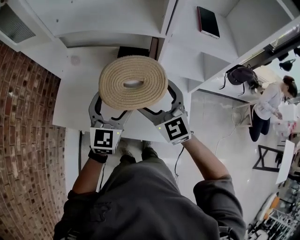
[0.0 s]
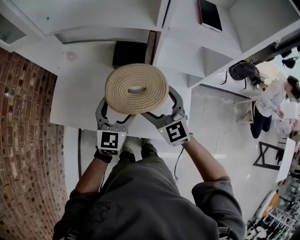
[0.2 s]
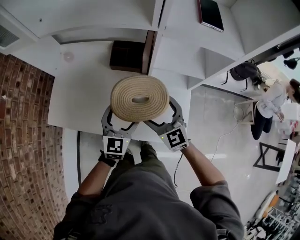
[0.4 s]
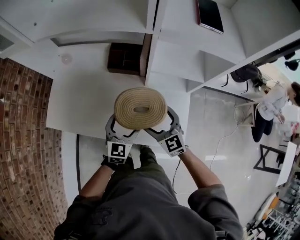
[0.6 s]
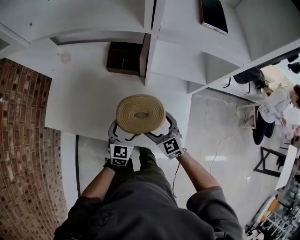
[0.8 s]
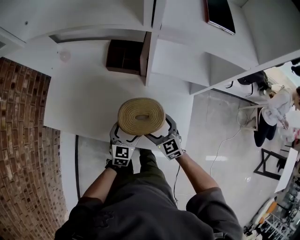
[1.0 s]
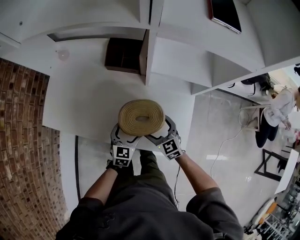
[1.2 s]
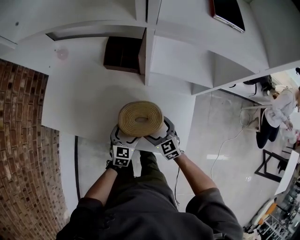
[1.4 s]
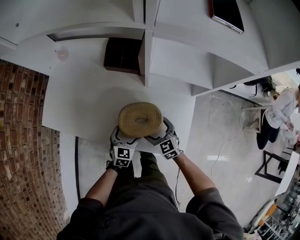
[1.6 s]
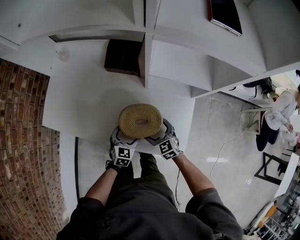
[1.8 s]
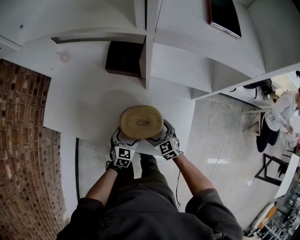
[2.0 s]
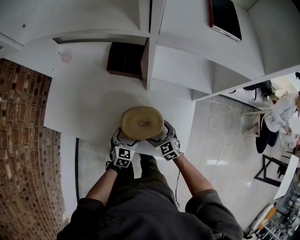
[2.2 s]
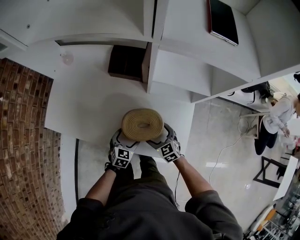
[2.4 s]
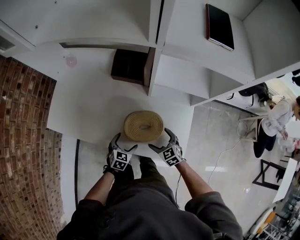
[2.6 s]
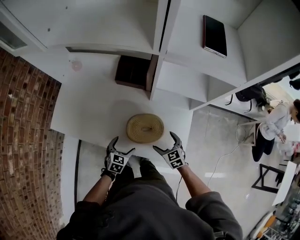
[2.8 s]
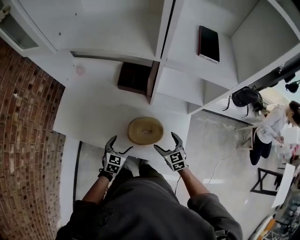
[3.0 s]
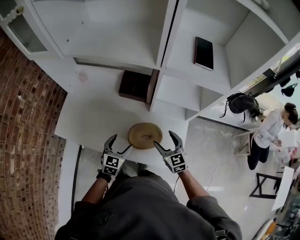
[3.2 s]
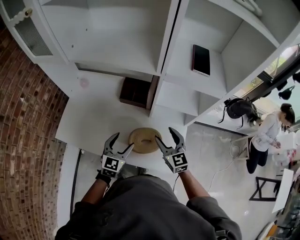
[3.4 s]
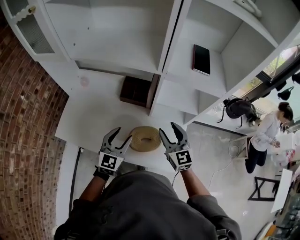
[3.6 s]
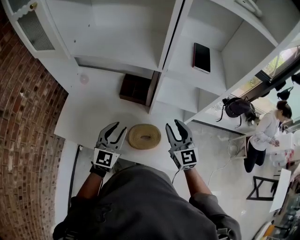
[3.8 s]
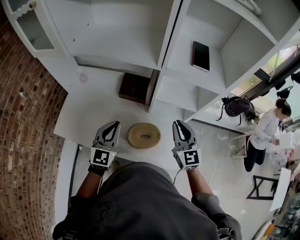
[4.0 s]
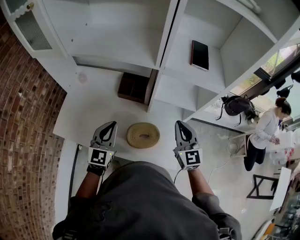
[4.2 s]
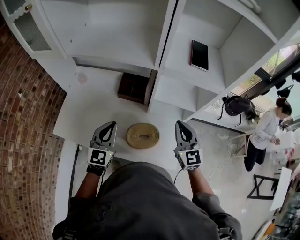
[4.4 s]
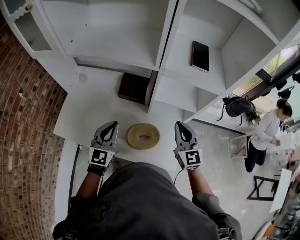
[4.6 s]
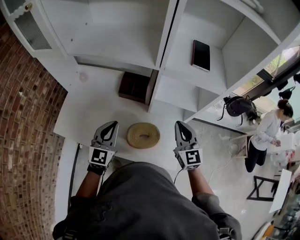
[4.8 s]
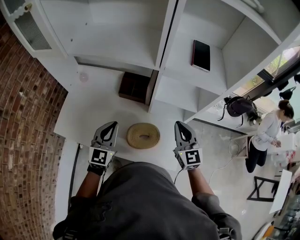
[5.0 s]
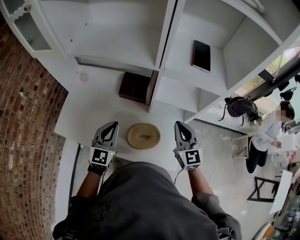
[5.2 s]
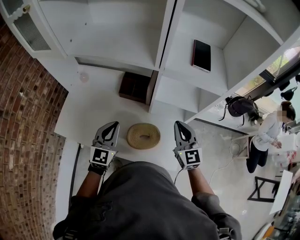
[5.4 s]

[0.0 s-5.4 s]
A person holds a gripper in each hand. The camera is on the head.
0.0 to 1.4 s: The grippers both shift downward by approximately 35 cm. The right gripper changes its angle by some 30 degrees, while the left gripper swivels approximately 30 degrees.
1.4 to 2.8 s: The left gripper goes approximately 5 cm to the left. Meanwhile the right gripper ends up about 5 cm from where it was.
2.8 to 4.0 s: Both grippers travel together upward, roughly 30 cm. The left gripper angles its fingers upward, by some 40 degrees, and closes its fingers. The right gripper tilts its fingers some 40 degrees upward, and closes.
4.0 to 5.4 s: The grippers make only small movements.

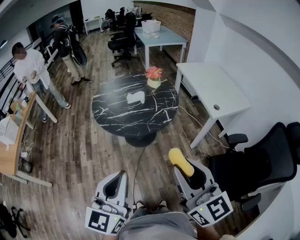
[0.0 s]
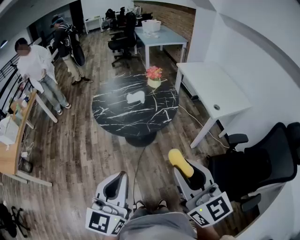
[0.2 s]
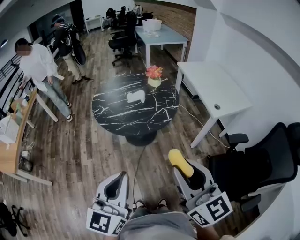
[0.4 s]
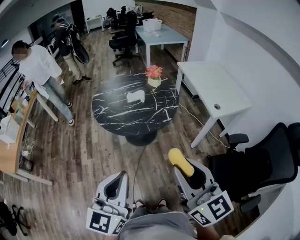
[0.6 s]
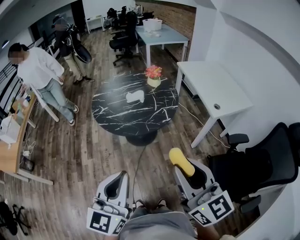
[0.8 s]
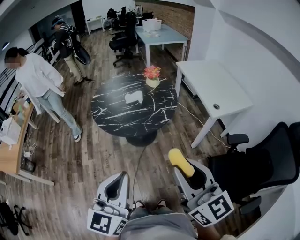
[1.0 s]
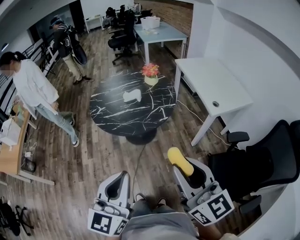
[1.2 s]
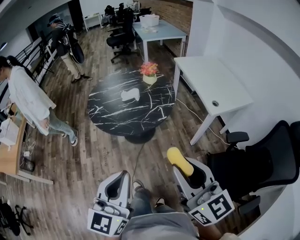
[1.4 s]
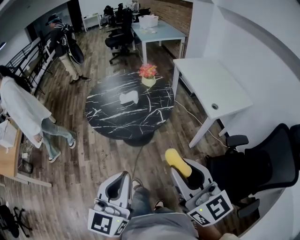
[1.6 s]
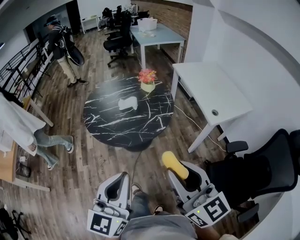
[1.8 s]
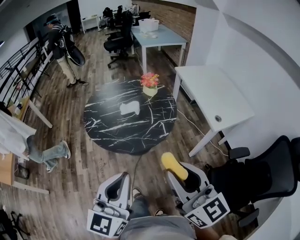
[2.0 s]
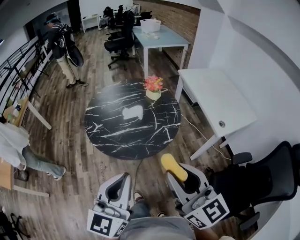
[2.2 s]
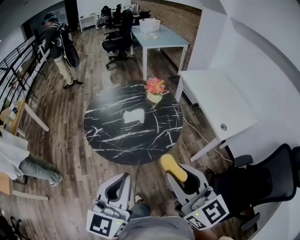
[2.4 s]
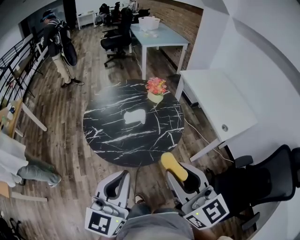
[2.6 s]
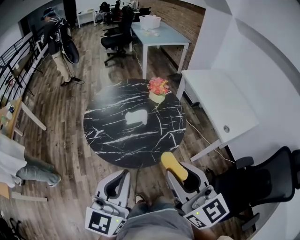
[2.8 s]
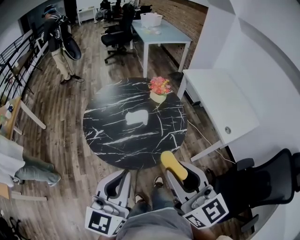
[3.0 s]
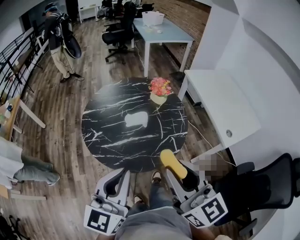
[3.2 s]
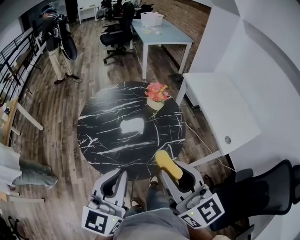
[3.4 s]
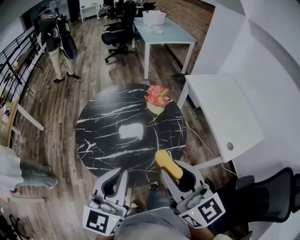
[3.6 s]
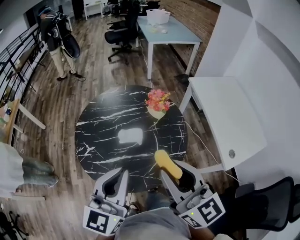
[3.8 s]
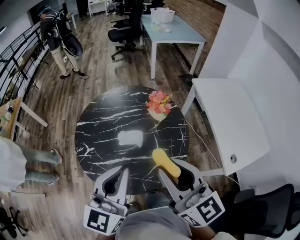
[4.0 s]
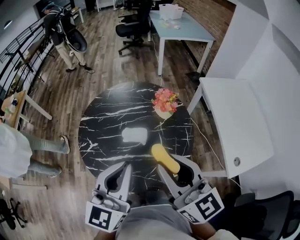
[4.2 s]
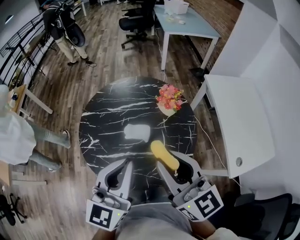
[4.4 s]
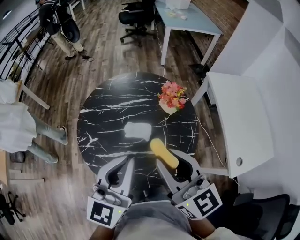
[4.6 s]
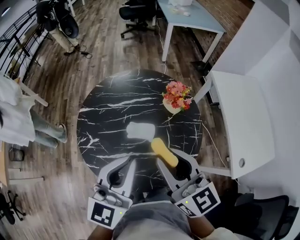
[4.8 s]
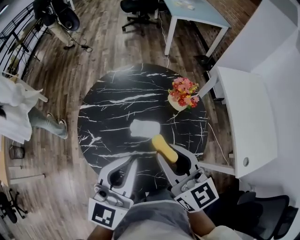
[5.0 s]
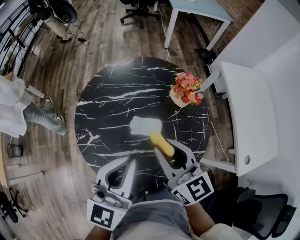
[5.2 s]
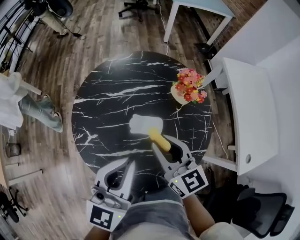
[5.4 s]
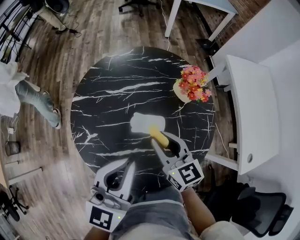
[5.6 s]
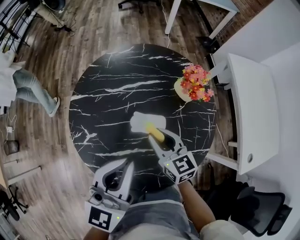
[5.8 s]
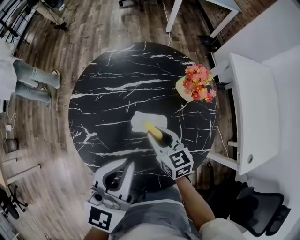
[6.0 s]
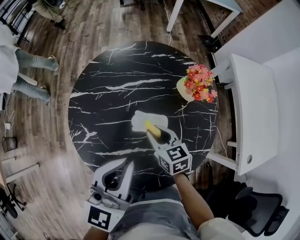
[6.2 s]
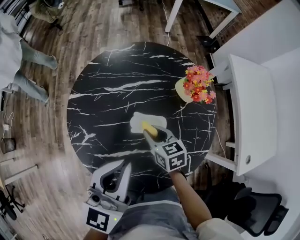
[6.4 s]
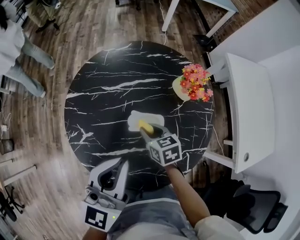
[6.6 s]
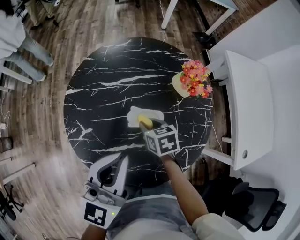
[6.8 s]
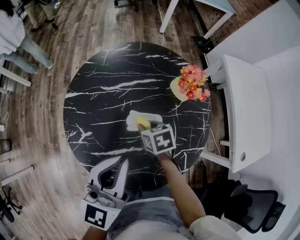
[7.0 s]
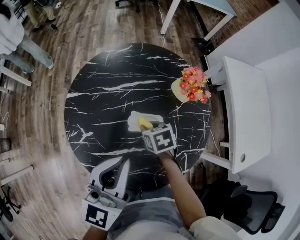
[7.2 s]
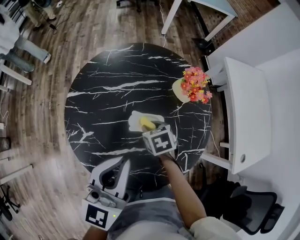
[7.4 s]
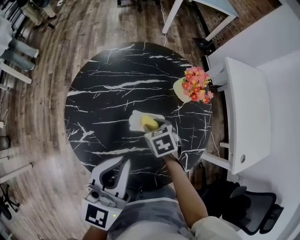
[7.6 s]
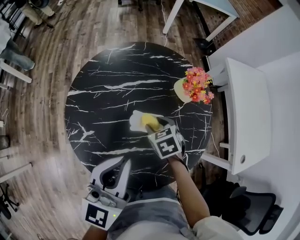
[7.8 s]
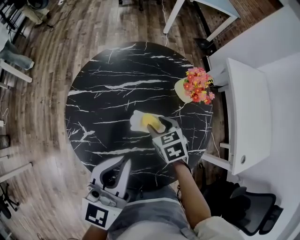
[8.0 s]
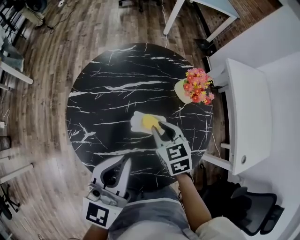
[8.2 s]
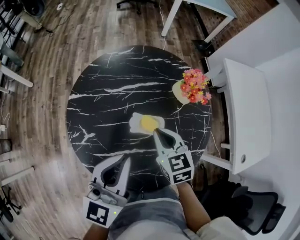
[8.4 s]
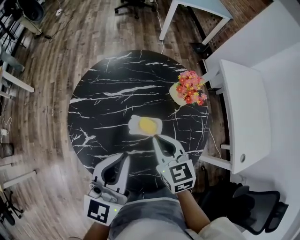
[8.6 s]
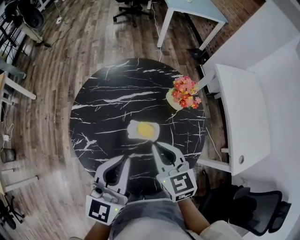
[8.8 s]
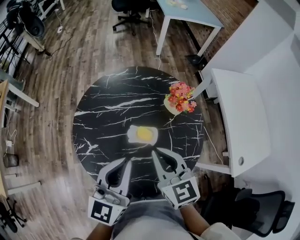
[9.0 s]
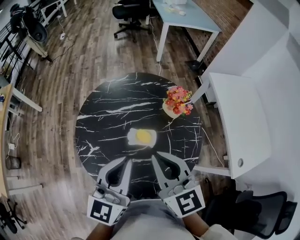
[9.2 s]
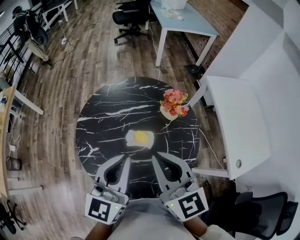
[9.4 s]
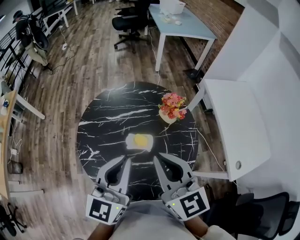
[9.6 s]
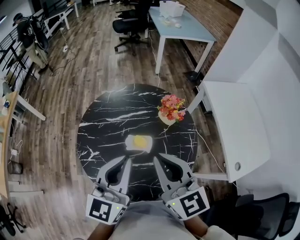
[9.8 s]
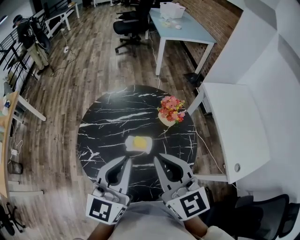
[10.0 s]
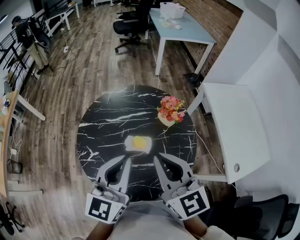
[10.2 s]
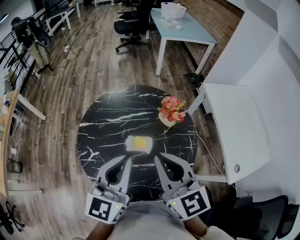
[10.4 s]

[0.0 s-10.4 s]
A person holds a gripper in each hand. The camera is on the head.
0.0 to 1.4 s: Both grippers move to the right, roughly 5 cm.
1.4 to 3.0 s: The right gripper moves forward and to the left, some 30 cm. Meanwhile the left gripper shifts approximately 25 cm forward.
3.0 to 4.4 s: The left gripper goes about 25 cm forward and to the right. Meanwhile the right gripper goes approximately 25 cm forward.
4.4 to 6.0 s: The left gripper moves downward, forward and to the left, approximately 15 cm. The right gripper shifts about 35 cm downward and forward, and points its fingers approximately 30 degrees further downward.
6.0 to 7.4 s: The right gripper travels downward by about 5 cm, and points its fingers roughly 30 degrees further downward.
7.4 to 9.0 s: The right gripper goes roughly 25 cm upward, tips its fingers upward by about 40 degrees, and closes.
9.0 to 10.4 s: The right gripper moves upward, about 15 cm. The left gripper shifts approximately 5 cm upward.

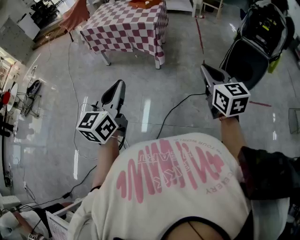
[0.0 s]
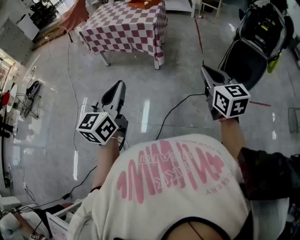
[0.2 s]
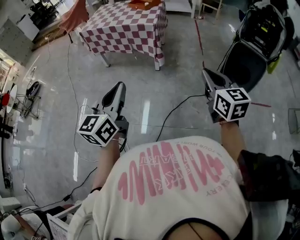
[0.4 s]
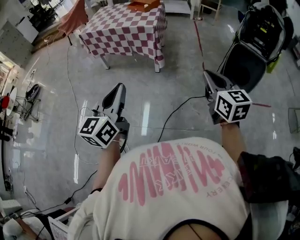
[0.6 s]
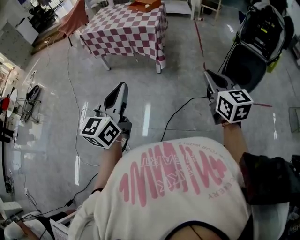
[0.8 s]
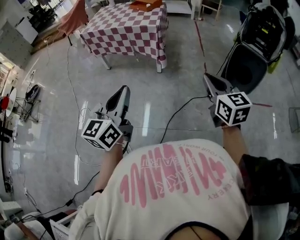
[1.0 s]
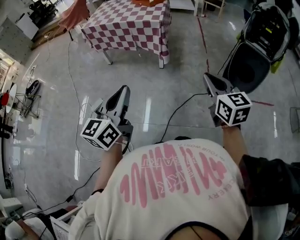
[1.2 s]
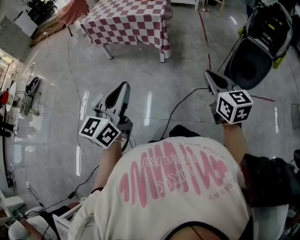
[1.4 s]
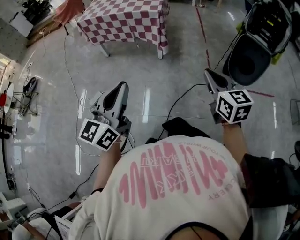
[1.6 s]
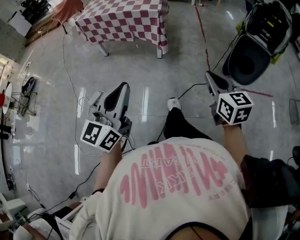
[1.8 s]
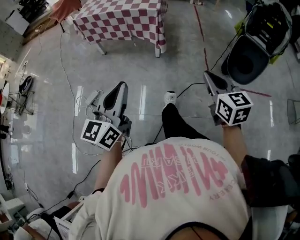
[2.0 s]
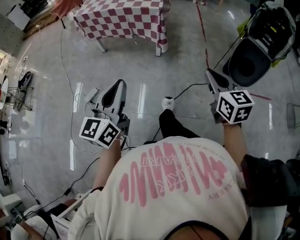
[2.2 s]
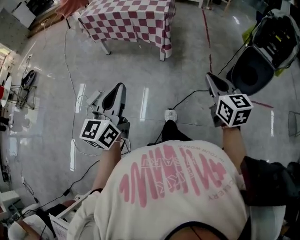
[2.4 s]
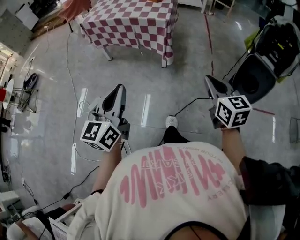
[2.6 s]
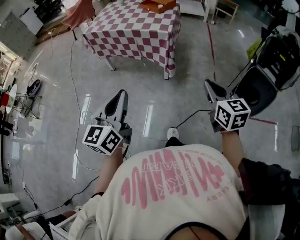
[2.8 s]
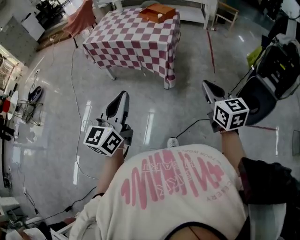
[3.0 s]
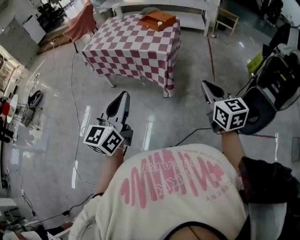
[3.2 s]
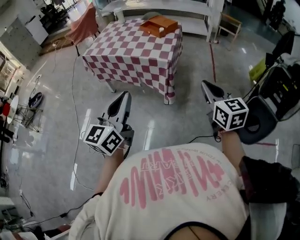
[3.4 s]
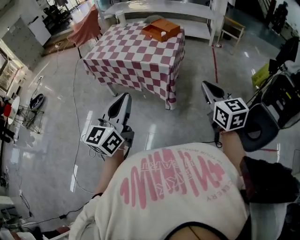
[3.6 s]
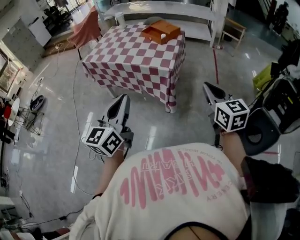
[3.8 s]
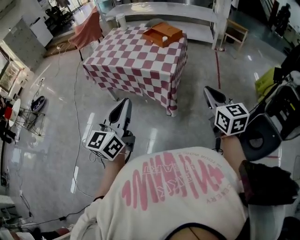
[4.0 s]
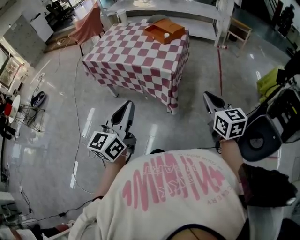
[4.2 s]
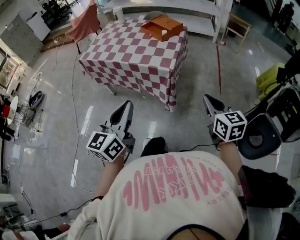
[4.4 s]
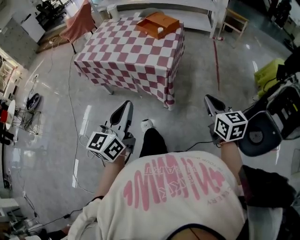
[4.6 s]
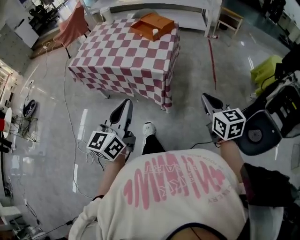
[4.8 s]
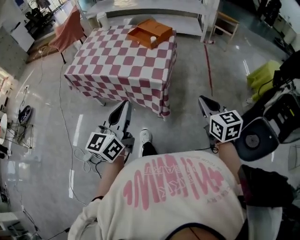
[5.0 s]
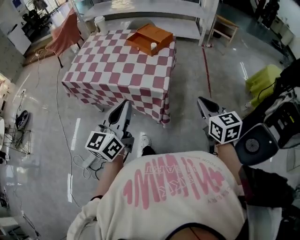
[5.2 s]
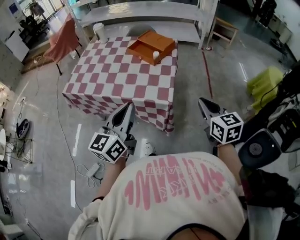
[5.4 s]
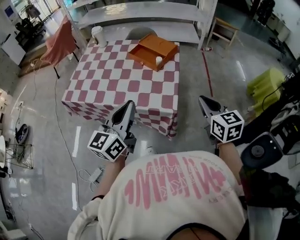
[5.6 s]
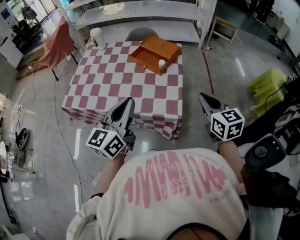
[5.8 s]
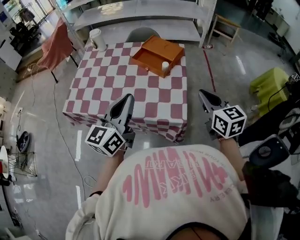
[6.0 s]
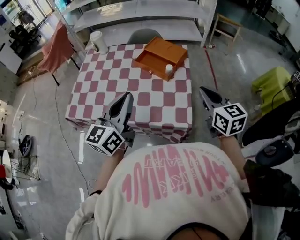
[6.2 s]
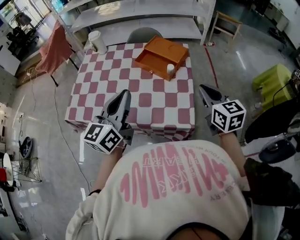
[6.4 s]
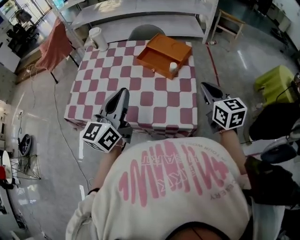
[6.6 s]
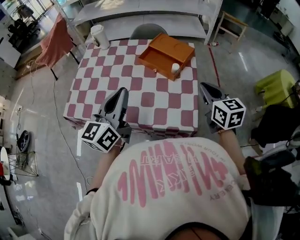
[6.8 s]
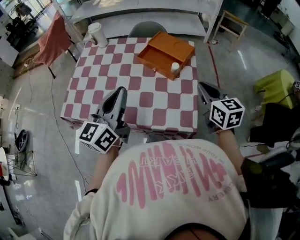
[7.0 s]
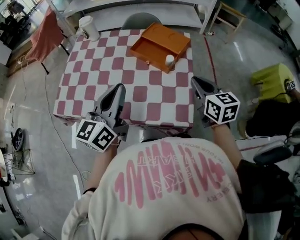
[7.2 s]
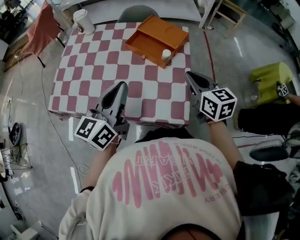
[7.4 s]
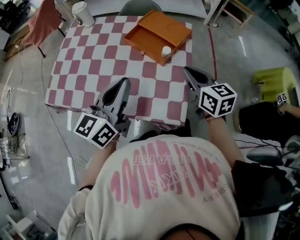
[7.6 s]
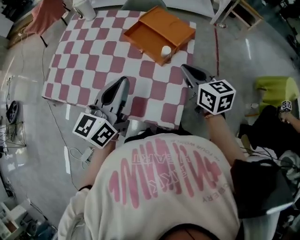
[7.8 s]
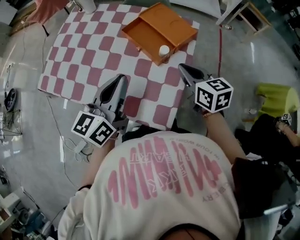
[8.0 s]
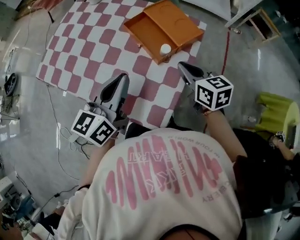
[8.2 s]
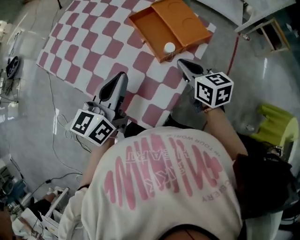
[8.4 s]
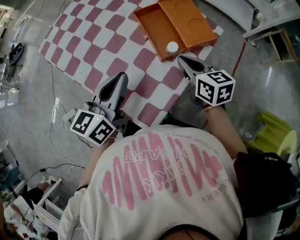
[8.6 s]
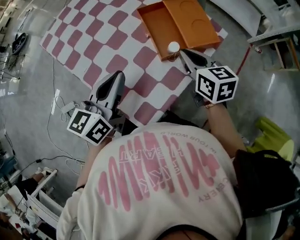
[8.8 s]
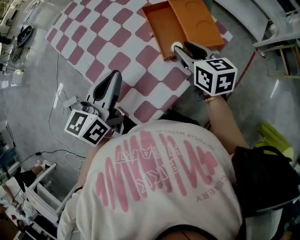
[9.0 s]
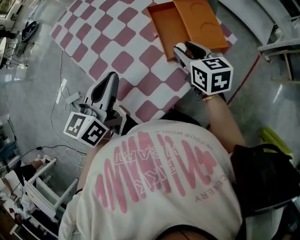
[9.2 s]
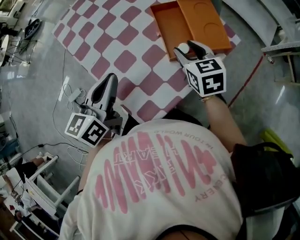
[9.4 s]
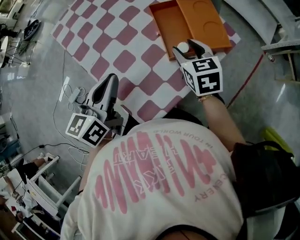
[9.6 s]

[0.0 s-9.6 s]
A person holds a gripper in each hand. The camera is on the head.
0.0 to 1.6 s: The left gripper is displaced to the left by some 5 cm. The right gripper moves to the left and downward, some 10 cm.
1.6 to 3.2 s: Both grippers move forward, approximately 30 cm.
3.2 to 4.8 s: The right gripper goes about 20 cm forward and downward. The left gripper shifts about 20 cm forward.
4.8 to 6.4 s: Both grippers travel together forward and to the left, approximately 40 cm.
6.4 to 8.0 s: The right gripper heads forward and downward, covering approximately 20 cm, and turns by approximately 20 degrees, while the left gripper heads forward, downward and to the right, covering some 15 cm.
8.0 to 9.6 s: The left gripper moves downward, some 5 cm, and rotates some 30 degrees. Meanwhile the right gripper changes place by about 15 cm, changes its angle by some 30 degrees, and opens up.
